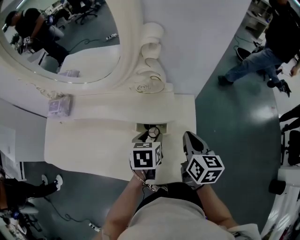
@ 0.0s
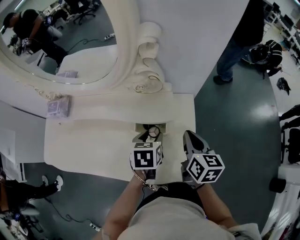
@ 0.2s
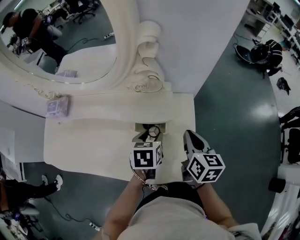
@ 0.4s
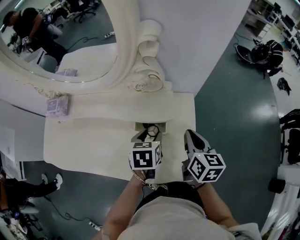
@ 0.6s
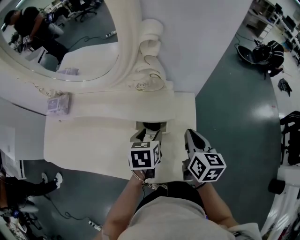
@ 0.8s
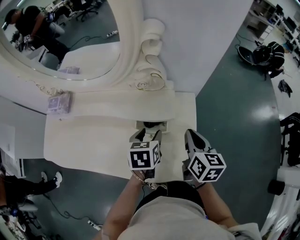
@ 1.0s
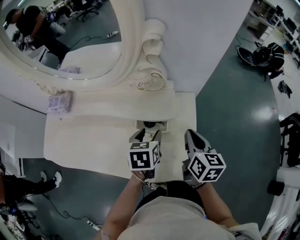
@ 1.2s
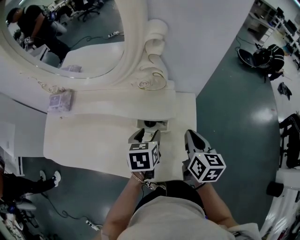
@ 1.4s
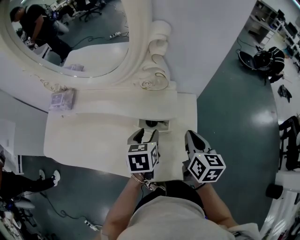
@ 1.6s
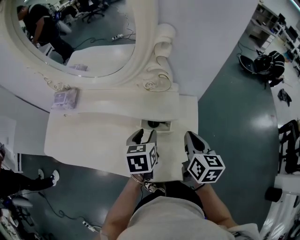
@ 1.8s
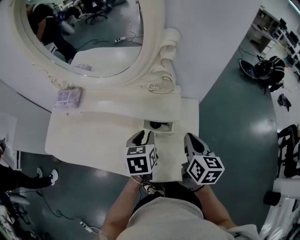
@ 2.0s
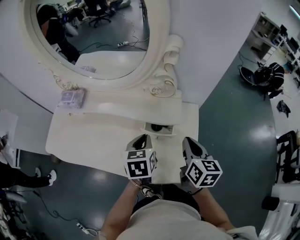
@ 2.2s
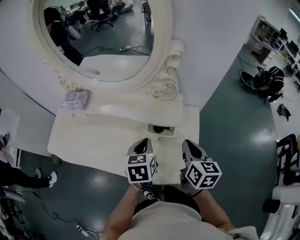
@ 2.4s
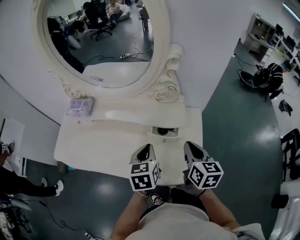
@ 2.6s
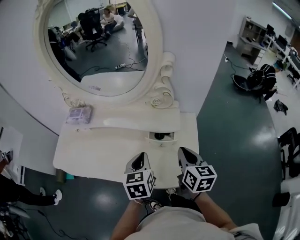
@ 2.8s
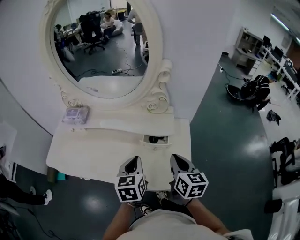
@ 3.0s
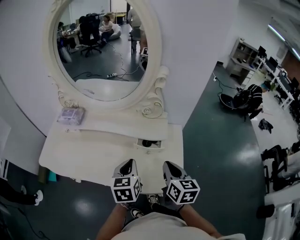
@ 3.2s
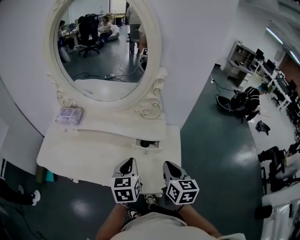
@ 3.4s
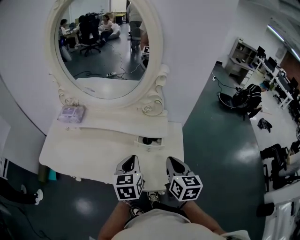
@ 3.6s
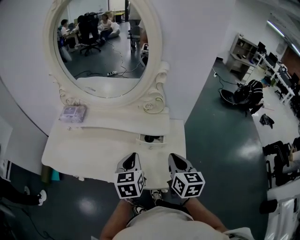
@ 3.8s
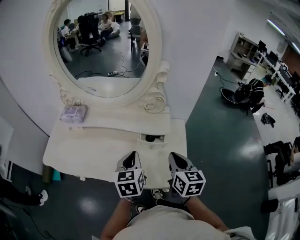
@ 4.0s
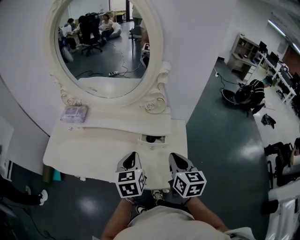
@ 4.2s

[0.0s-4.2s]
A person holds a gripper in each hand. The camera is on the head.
0.0s to 1.4s: There are only small adjustments of the grippers.
1.4s to 2.8s: The right gripper is displaced to the left and backward by about 10 cm; the left gripper goes roughly 15 cm to the left, backward and upward, and closes up.
2.8s to 4.2s: There are only small adjustments of the grippers.

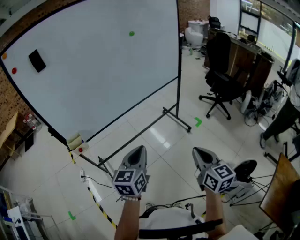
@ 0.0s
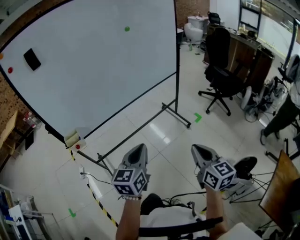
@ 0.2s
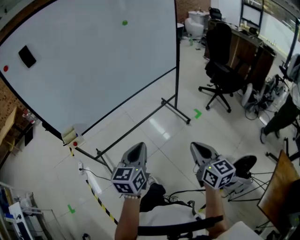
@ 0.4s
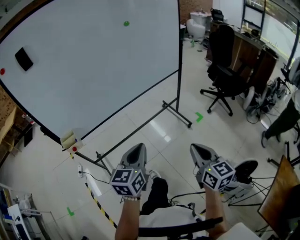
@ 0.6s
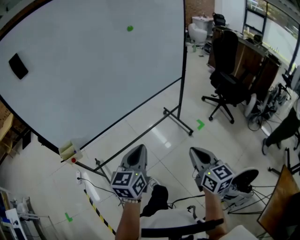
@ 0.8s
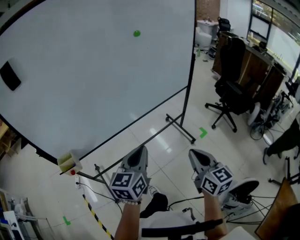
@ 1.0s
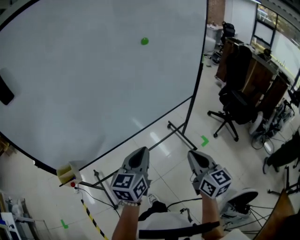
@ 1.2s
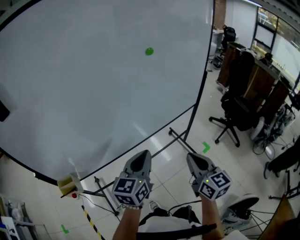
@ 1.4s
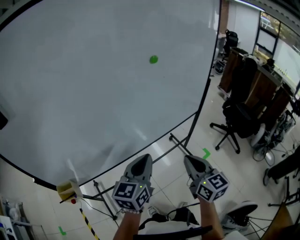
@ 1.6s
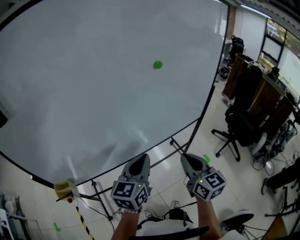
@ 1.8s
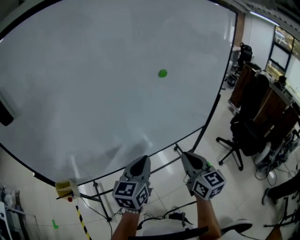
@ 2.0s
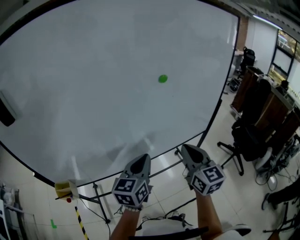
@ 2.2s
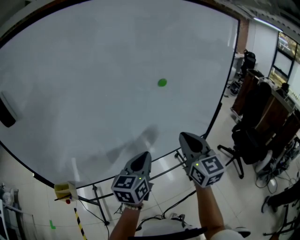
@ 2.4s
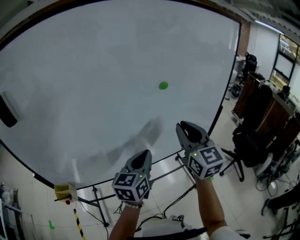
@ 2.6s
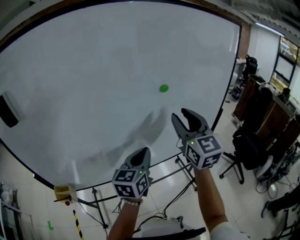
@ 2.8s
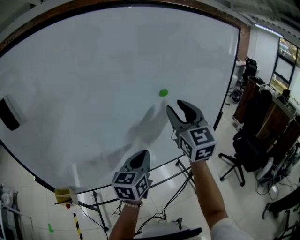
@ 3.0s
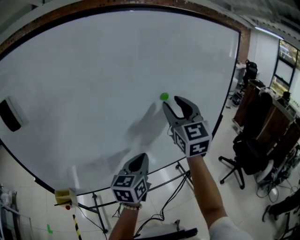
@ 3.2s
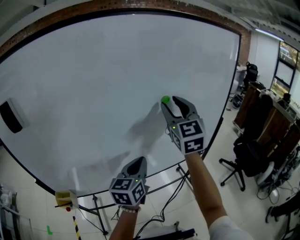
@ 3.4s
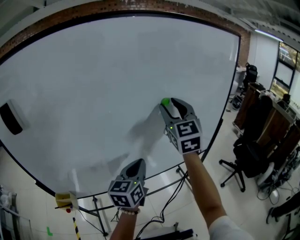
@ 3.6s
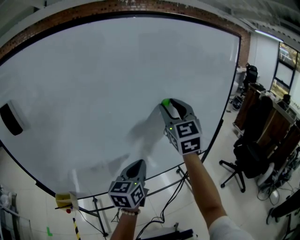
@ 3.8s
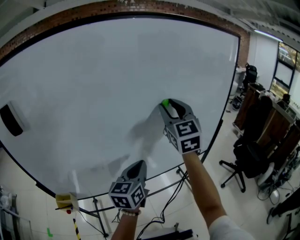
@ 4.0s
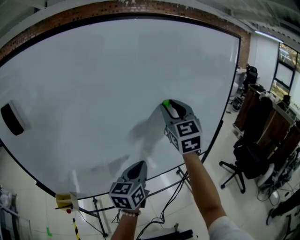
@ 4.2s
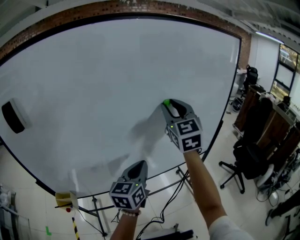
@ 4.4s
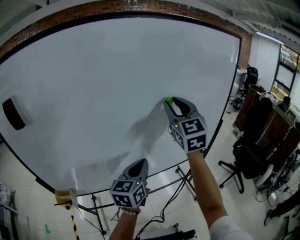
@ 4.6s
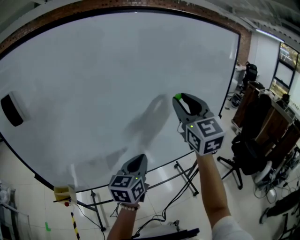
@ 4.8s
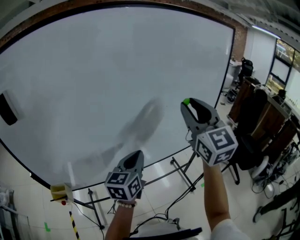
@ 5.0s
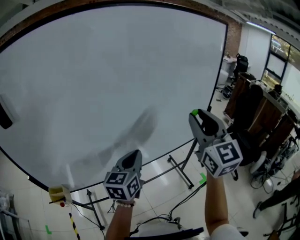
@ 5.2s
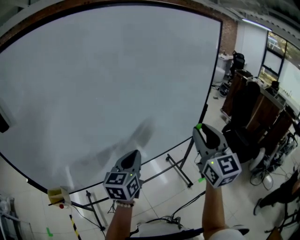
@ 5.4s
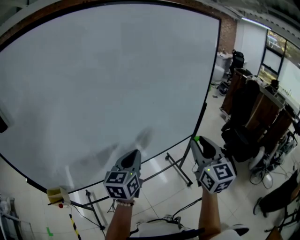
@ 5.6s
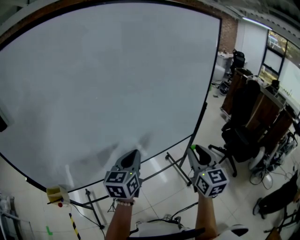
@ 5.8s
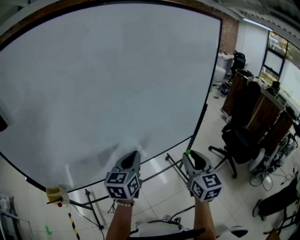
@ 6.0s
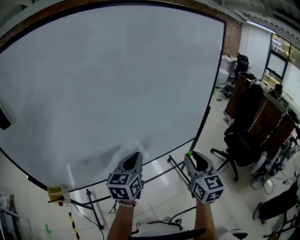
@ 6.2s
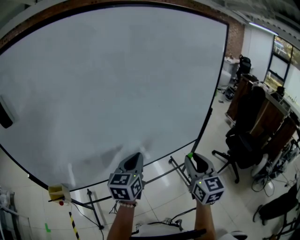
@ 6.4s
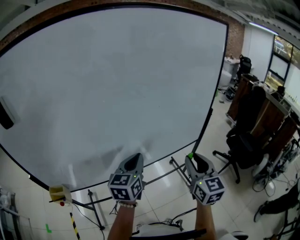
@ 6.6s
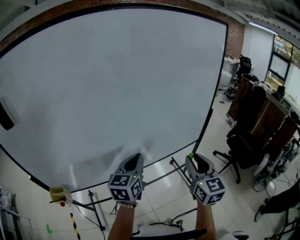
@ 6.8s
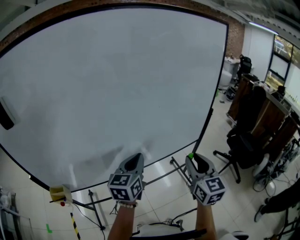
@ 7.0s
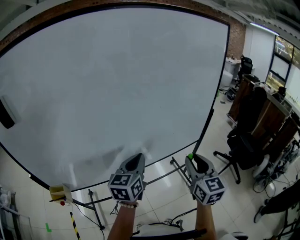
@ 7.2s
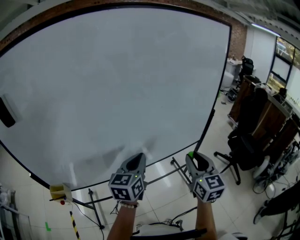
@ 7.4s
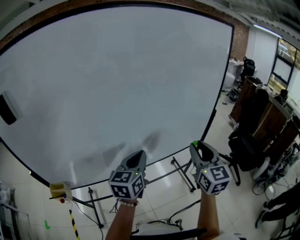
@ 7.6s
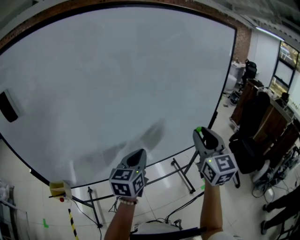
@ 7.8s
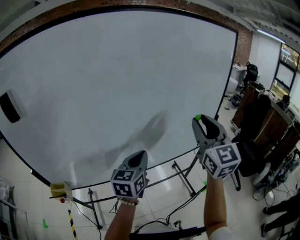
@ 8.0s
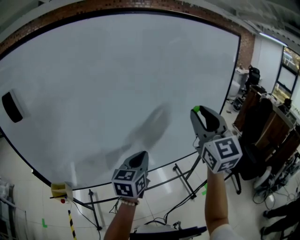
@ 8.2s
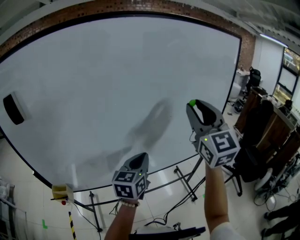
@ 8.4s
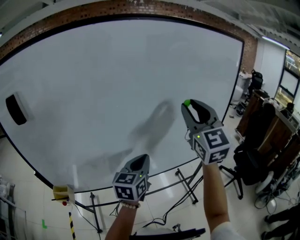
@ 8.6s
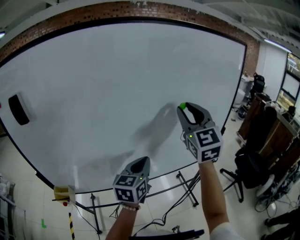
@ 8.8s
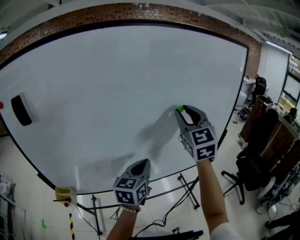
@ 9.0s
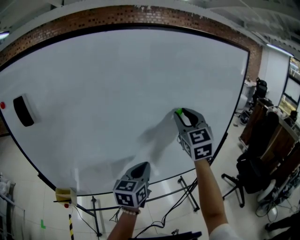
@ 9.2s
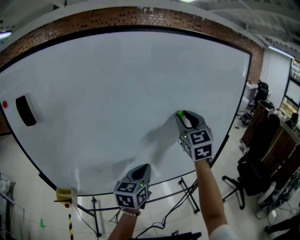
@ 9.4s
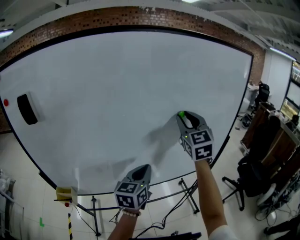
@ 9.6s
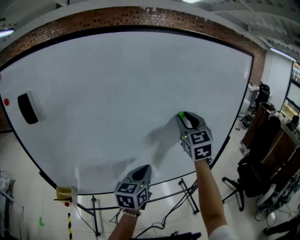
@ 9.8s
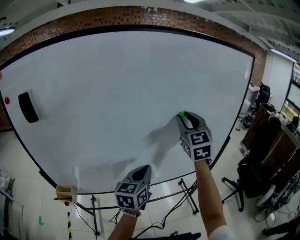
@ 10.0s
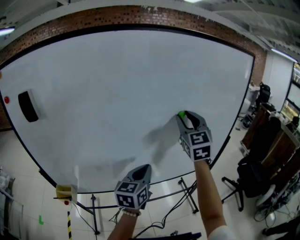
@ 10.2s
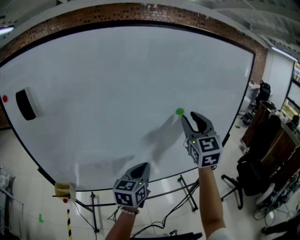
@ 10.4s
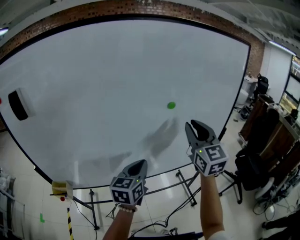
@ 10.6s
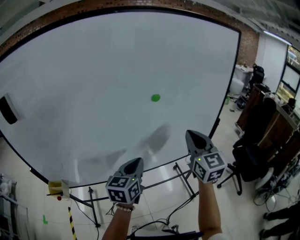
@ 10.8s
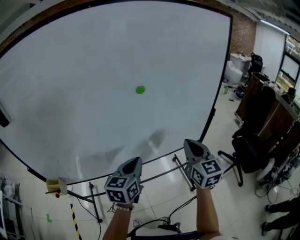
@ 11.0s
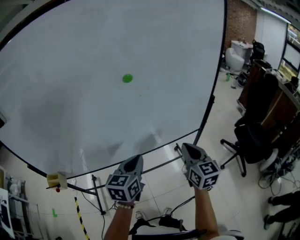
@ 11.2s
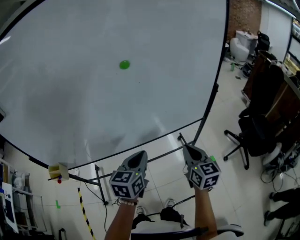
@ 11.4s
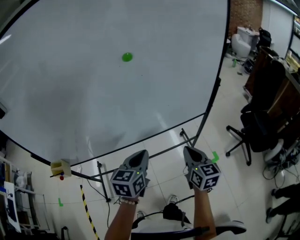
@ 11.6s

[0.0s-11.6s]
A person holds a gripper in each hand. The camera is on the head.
0.0s to 1.4s: Both grippers travel together forward, some 35 cm.
1.4s to 2.8s: The right gripper is displaced forward and upward by roughly 30 cm, changes its angle by some 30 degrees, and opens its fingers; the left gripper shifts some 15 cm forward and upward.
2.8s to 4.4s: The right gripper heads forward and upward, covering some 10 cm.
4.4s to 5.8s: The left gripper is displaced to the right by some 5 cm, while the right gripper heads to the right, downward and backward, covering some 30 cm, and rotates roughly 20 degrees.
5.8s to 7.2s: There are only small adjustments of the grippers.
7.2s to 8.8s: The right gripper goes about 25 cm upward, forward and to the left, and changes its angle by some 30 degrees.
8.8s to 10.2s: The right gripper shifts by some 5 cm.
10.2s to 11.6s: The left gripper heads to the right and downward, covering roughly 20 cm. Meanwhile the right gripper heads downward, to the right and backward, covering roughly 40 cm, changes its angle by roughly 40 degrees, and closes up.

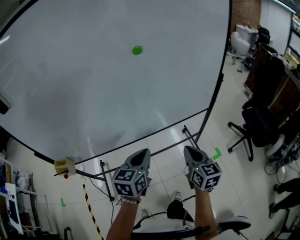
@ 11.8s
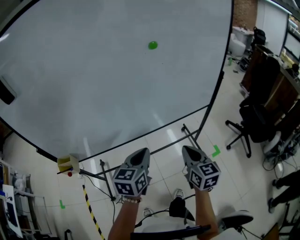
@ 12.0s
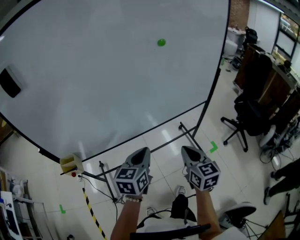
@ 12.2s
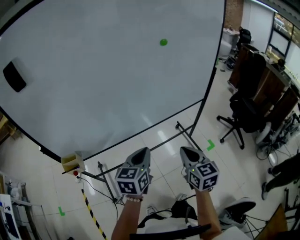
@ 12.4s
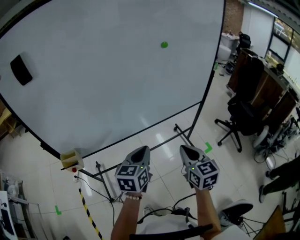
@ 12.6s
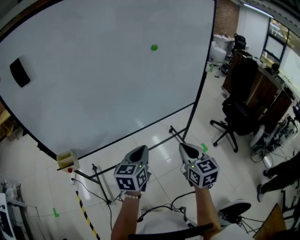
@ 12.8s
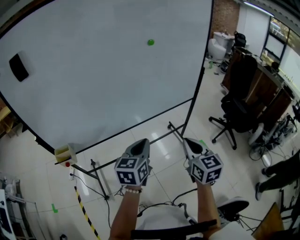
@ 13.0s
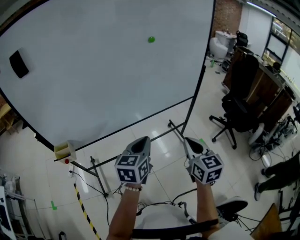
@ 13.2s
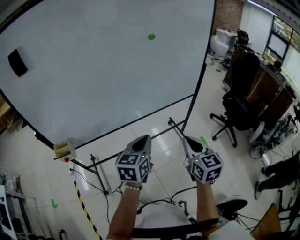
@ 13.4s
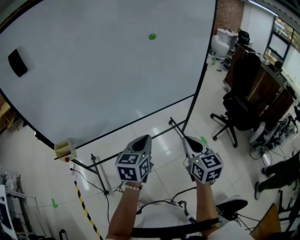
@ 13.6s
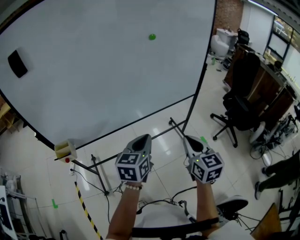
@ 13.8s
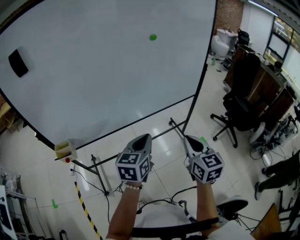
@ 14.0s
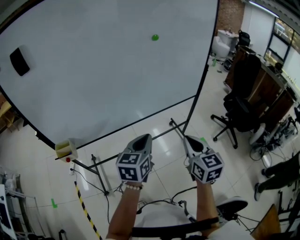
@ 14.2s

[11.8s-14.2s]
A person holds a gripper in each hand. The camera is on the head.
11.8s to 13.0s: The left gripper travels backward and to the left by approximately 15 cm; the right gripper moves backward and upward, approximately 20 cm.
13.0s to 14.2s: Neither gripper changes place.

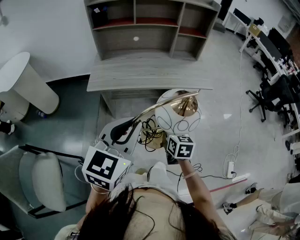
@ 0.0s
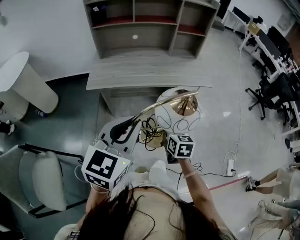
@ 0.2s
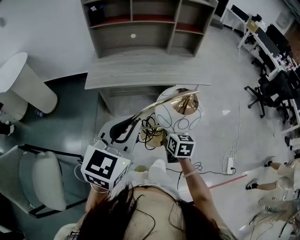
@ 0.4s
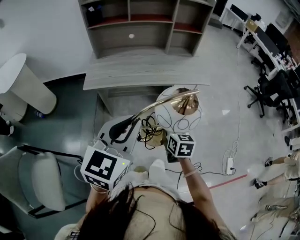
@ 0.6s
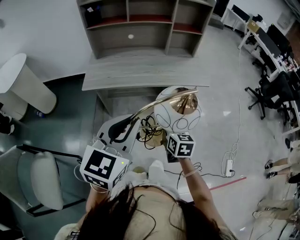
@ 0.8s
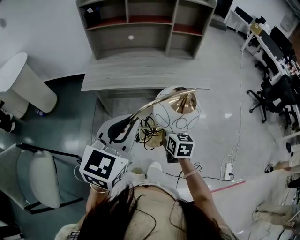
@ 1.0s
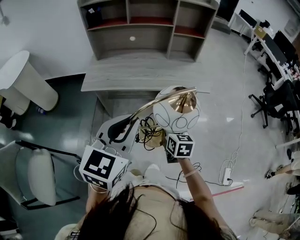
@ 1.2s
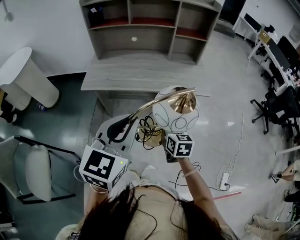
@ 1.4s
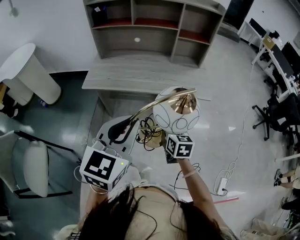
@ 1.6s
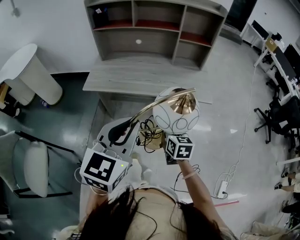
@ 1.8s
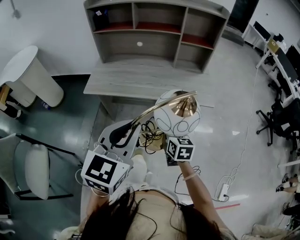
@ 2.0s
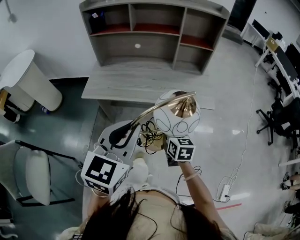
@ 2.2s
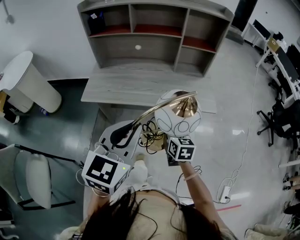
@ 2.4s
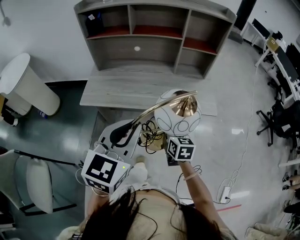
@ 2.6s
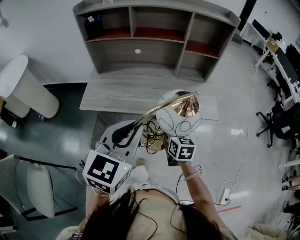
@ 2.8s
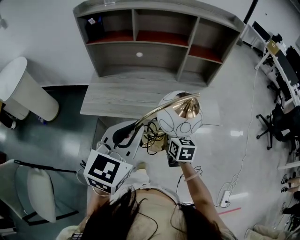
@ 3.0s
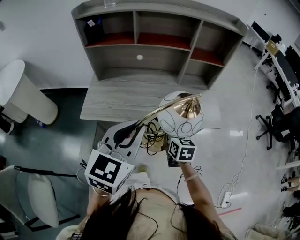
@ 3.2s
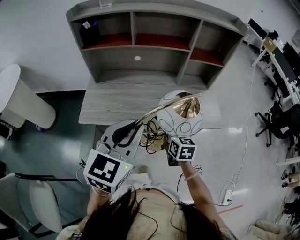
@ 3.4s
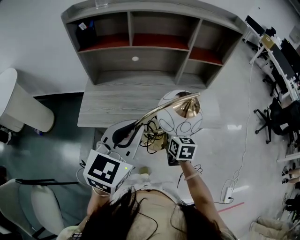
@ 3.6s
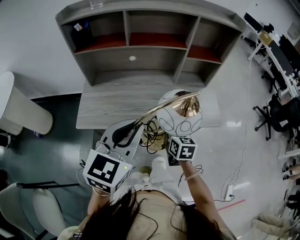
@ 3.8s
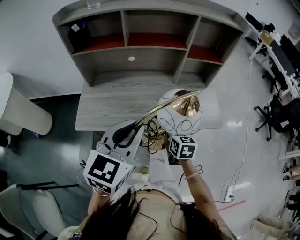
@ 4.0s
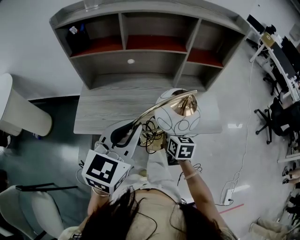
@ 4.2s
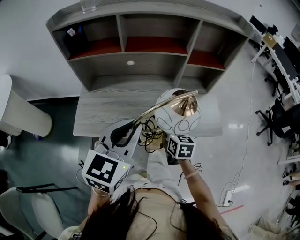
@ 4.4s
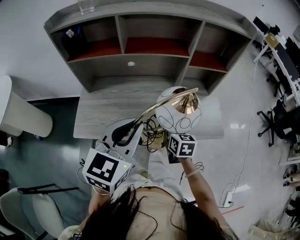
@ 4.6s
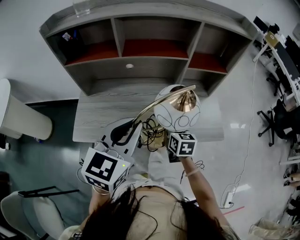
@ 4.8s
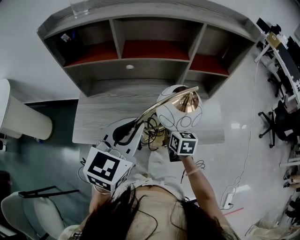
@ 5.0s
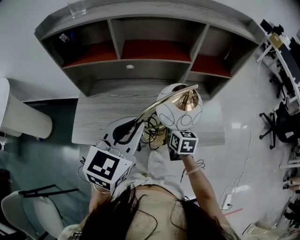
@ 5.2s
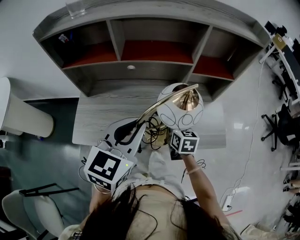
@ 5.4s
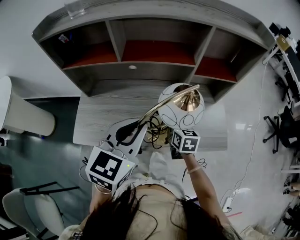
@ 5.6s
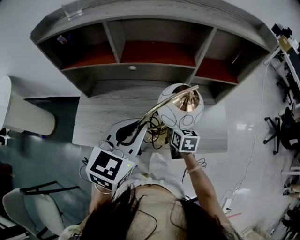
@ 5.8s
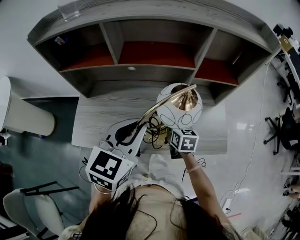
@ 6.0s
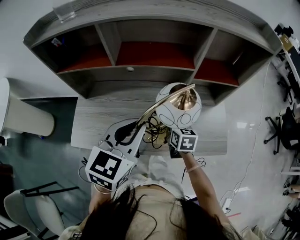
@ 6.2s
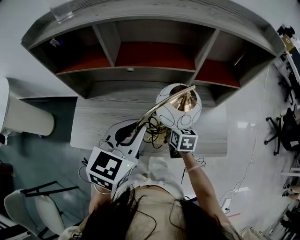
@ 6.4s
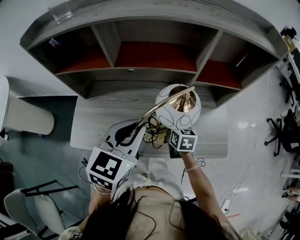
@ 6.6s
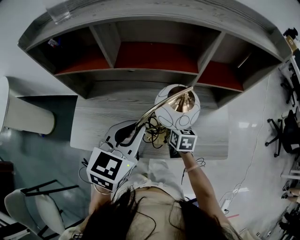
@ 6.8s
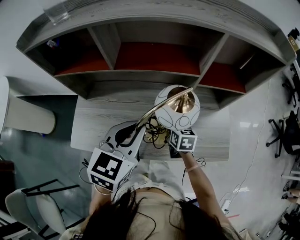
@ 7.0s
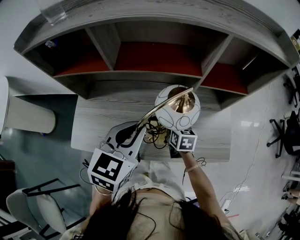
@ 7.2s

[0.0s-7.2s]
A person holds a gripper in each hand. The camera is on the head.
0.0s to 1.4s: The grippers both shift to the right and forward by roughly 10 cm.
1.4s to 2.8s: The grippers both shift forward by about 15 cm.
2.8s to 4.4s: Both grippers travel together forward, some 15 cm.
4.4s to 5.8s: The two grippers go about 10 cm forward.
5.8s to 7.2s: Both grippers move forward, about 5 cm.
